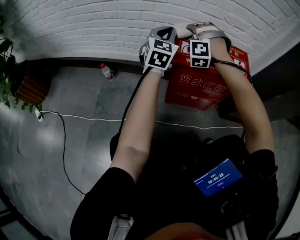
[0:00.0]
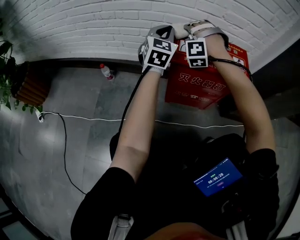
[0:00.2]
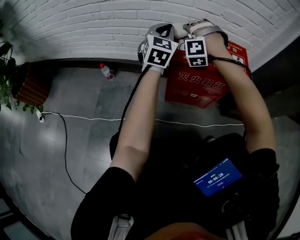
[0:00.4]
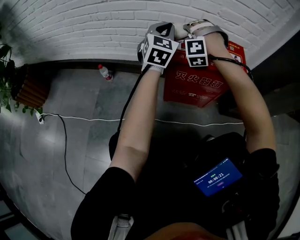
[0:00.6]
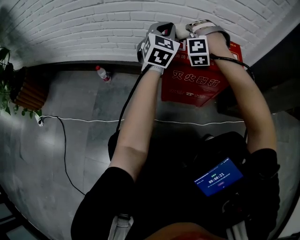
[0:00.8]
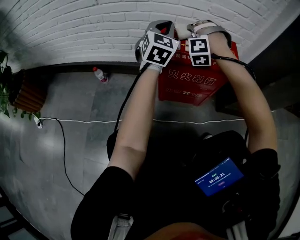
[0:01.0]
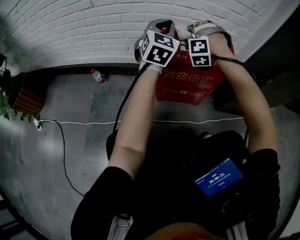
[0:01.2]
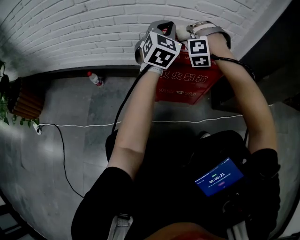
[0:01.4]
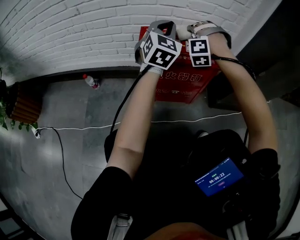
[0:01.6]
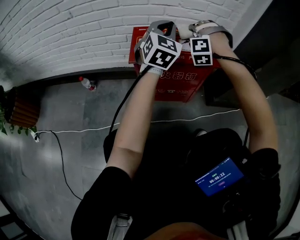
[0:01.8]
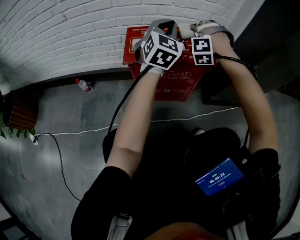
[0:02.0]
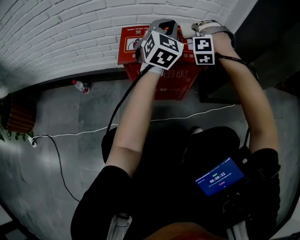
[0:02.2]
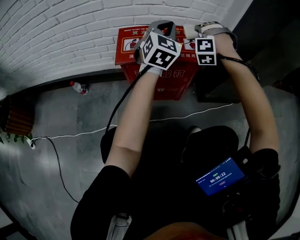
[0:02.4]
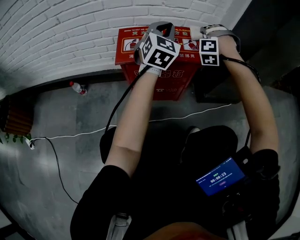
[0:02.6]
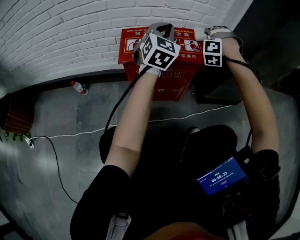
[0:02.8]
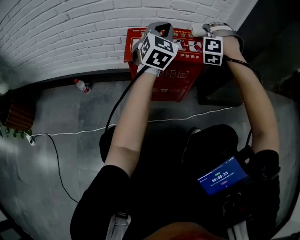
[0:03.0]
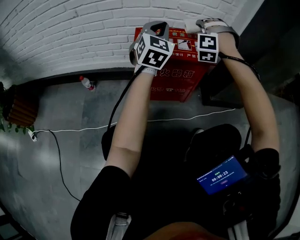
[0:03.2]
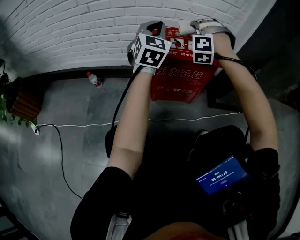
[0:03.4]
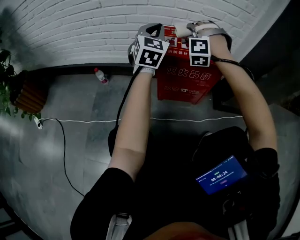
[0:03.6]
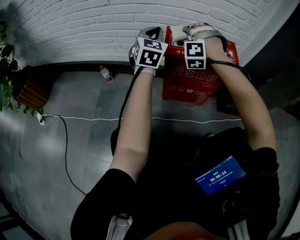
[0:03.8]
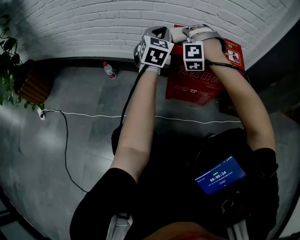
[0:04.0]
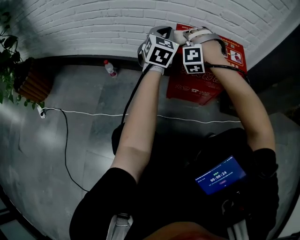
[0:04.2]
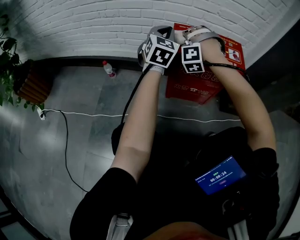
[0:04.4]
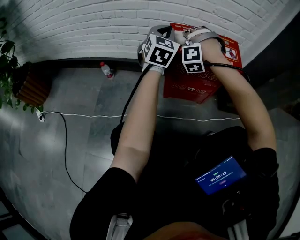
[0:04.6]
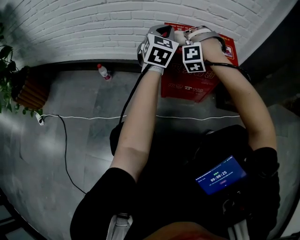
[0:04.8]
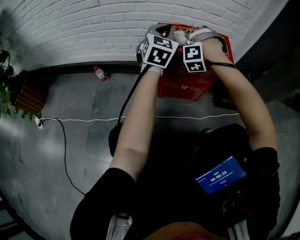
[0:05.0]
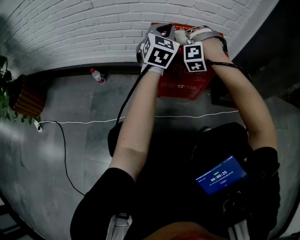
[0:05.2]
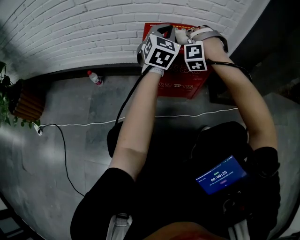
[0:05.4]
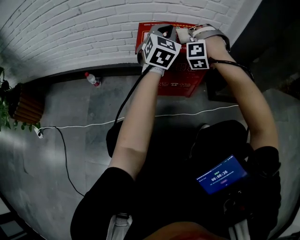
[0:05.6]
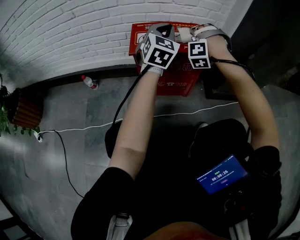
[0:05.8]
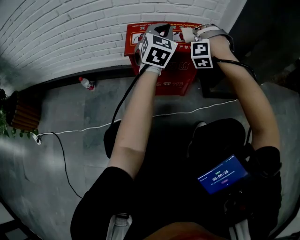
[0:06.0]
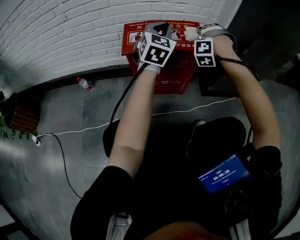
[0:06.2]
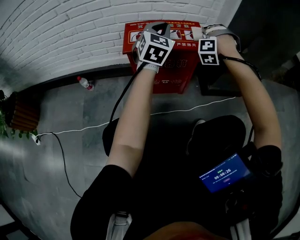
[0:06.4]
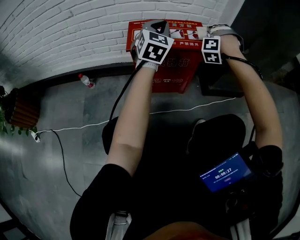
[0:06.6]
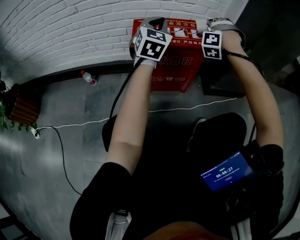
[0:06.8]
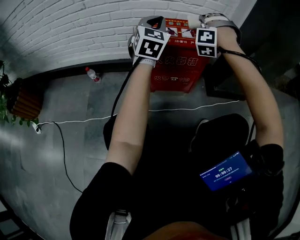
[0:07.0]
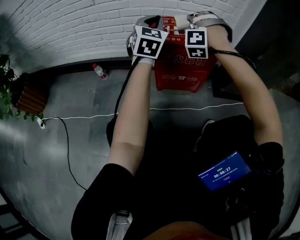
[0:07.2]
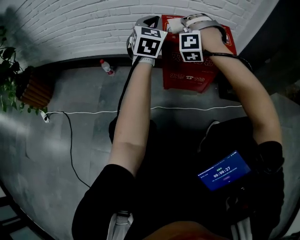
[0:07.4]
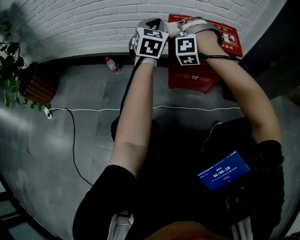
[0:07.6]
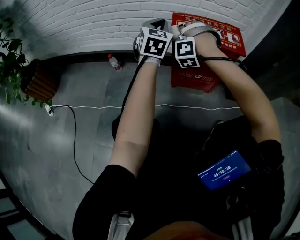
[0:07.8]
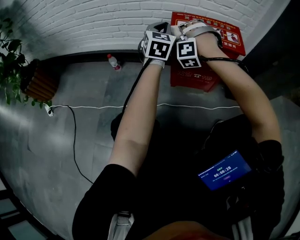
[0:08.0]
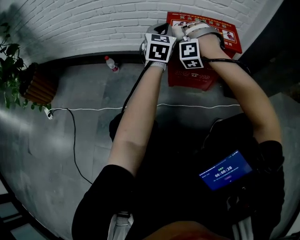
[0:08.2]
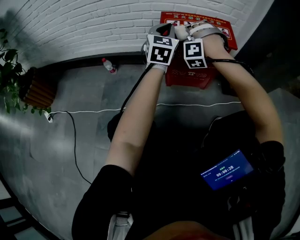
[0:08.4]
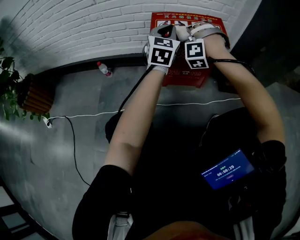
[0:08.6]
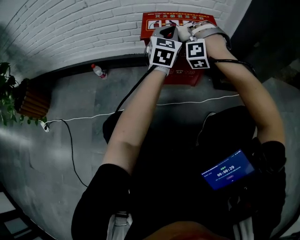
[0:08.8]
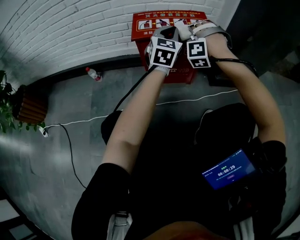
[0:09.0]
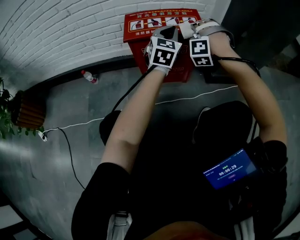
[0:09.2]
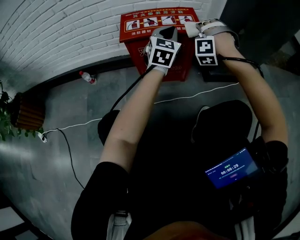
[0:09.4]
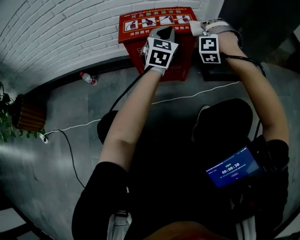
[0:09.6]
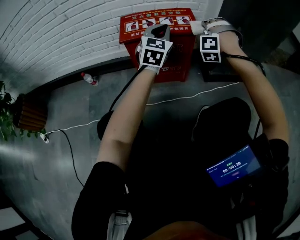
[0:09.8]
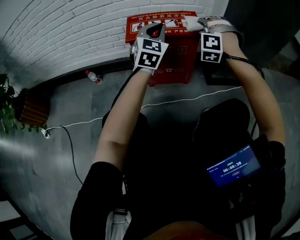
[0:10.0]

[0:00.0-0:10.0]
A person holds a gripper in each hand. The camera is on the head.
0:00.0 to 0:01.4: The left gripper ends up approximately 15 cm from where it was.
0:01.4 to 0:02.8: The left gripper ends up about 10 cm from where it was.
0:02.8 to 0:04.2: The left gripper ends up approximately 25 cm from where it was.
0:04.2 to 0:05.8: The left gripper changes place by roughly 20 cm.
0:05.8 to 0:07.2: The left gripper moves approximately 15 cm.
0:07.2 to 0:08.6: The left gripper ends up some 5 cm from where it was.

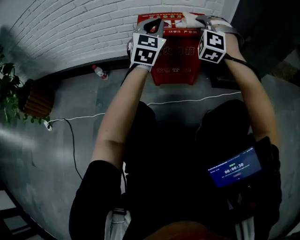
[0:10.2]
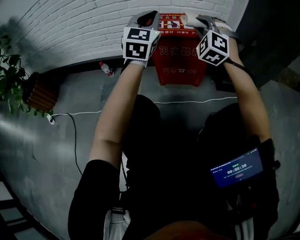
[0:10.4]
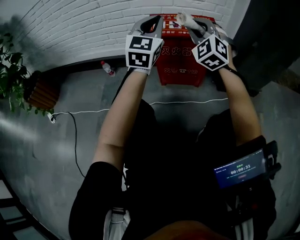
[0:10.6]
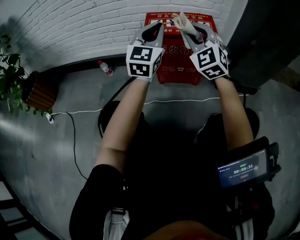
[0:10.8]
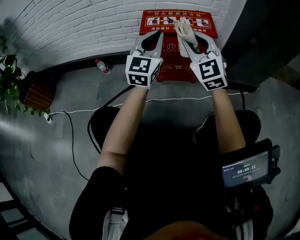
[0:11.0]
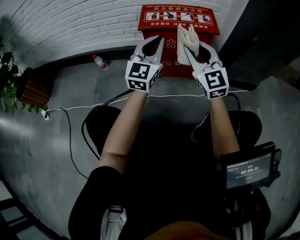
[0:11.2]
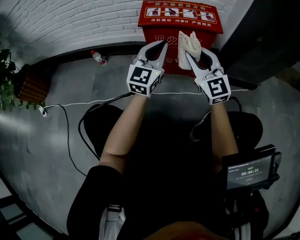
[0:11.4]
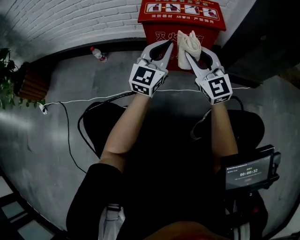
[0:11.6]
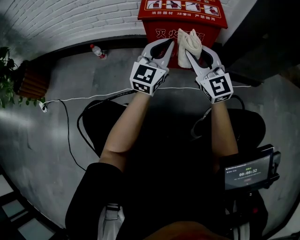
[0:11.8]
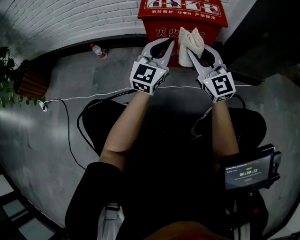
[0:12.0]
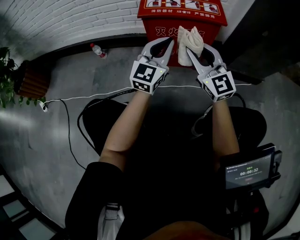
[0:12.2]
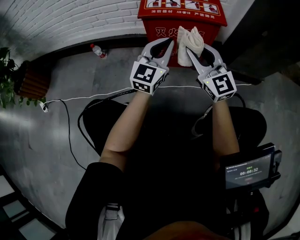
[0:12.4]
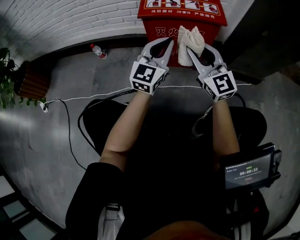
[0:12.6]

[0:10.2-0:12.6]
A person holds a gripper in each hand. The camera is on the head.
0:10.2 to 0:11.4: The left gripper shifts approximately 10 cm downward, and changes its angle by approximately 20 degrees.

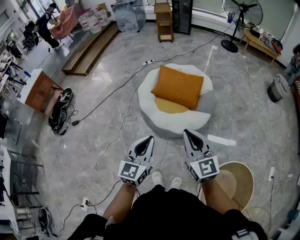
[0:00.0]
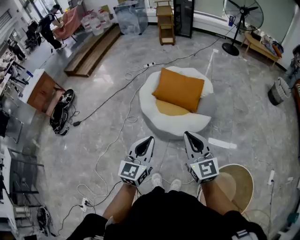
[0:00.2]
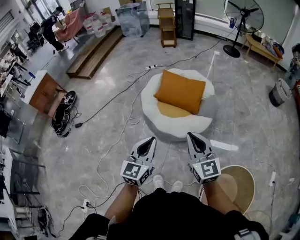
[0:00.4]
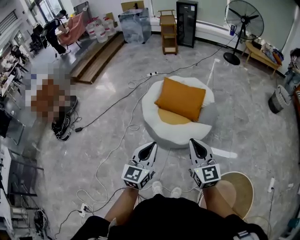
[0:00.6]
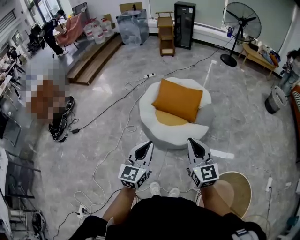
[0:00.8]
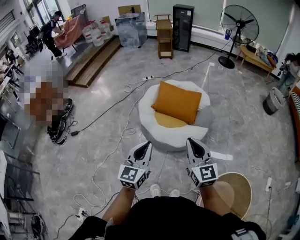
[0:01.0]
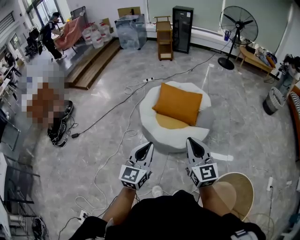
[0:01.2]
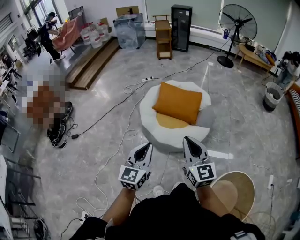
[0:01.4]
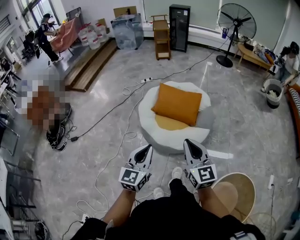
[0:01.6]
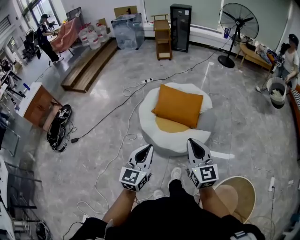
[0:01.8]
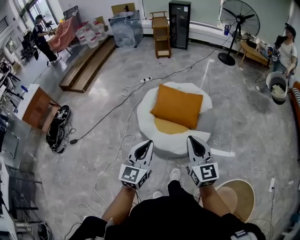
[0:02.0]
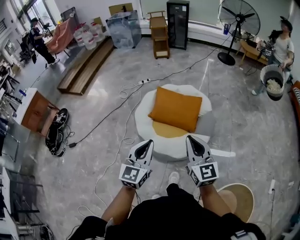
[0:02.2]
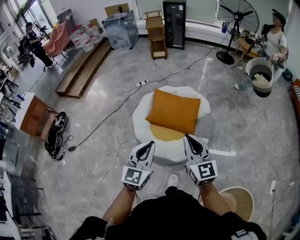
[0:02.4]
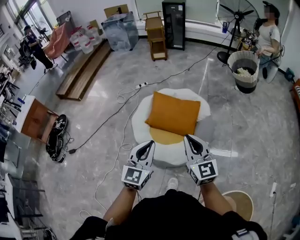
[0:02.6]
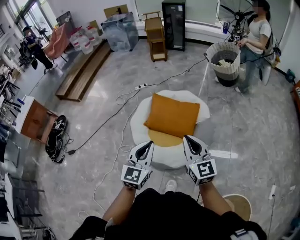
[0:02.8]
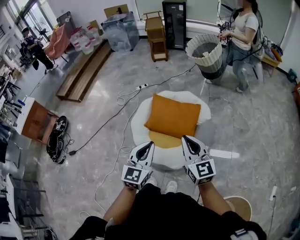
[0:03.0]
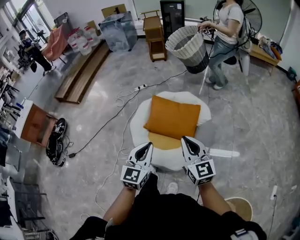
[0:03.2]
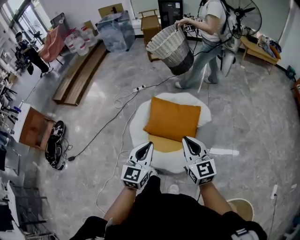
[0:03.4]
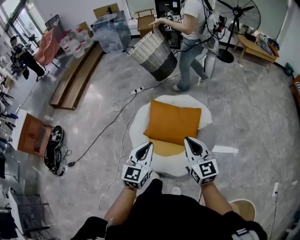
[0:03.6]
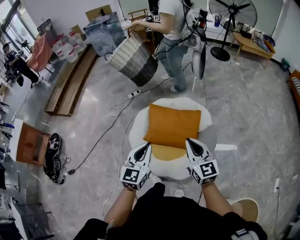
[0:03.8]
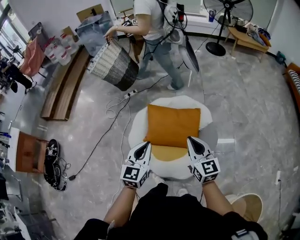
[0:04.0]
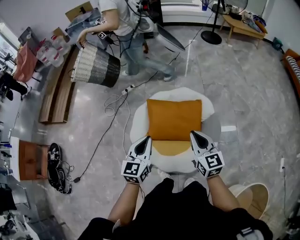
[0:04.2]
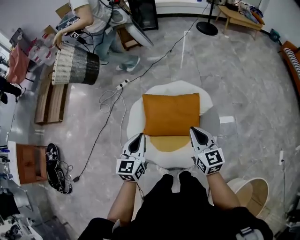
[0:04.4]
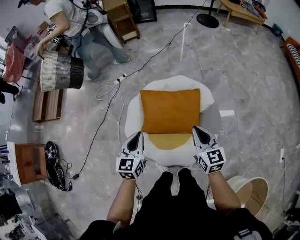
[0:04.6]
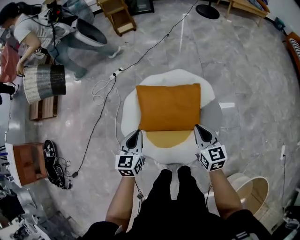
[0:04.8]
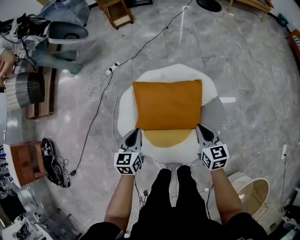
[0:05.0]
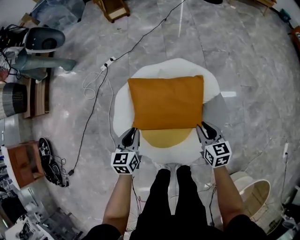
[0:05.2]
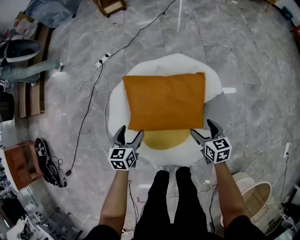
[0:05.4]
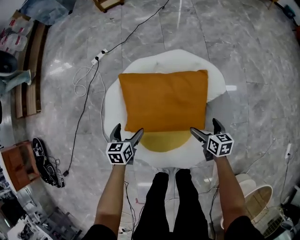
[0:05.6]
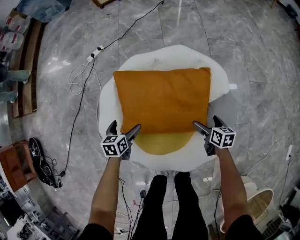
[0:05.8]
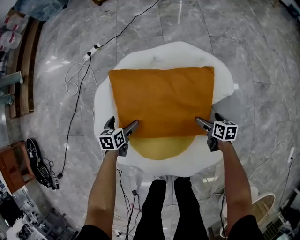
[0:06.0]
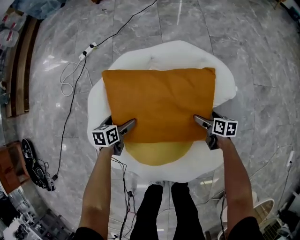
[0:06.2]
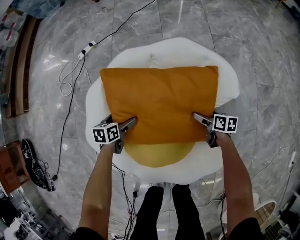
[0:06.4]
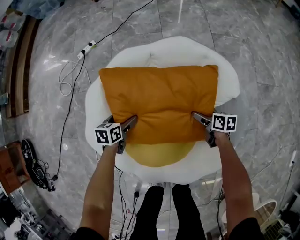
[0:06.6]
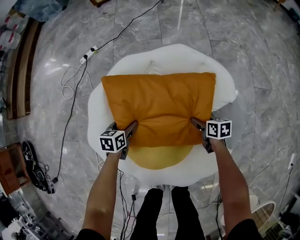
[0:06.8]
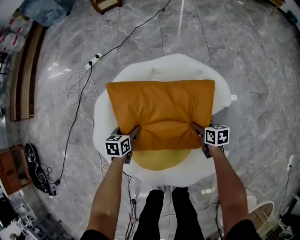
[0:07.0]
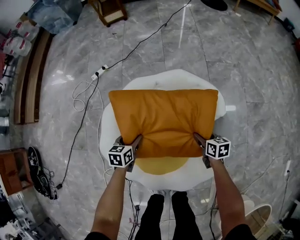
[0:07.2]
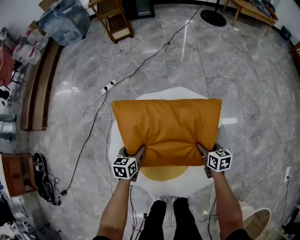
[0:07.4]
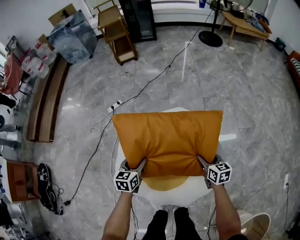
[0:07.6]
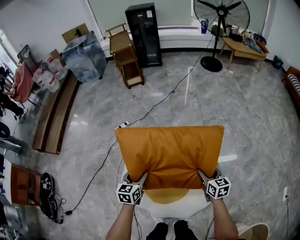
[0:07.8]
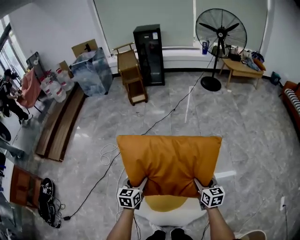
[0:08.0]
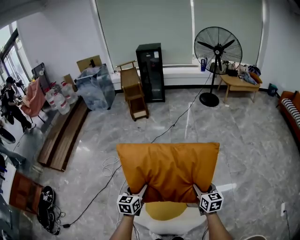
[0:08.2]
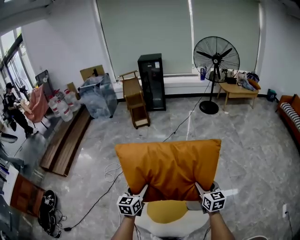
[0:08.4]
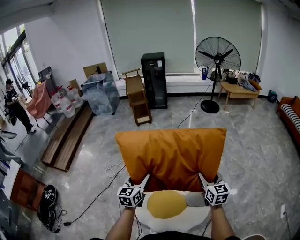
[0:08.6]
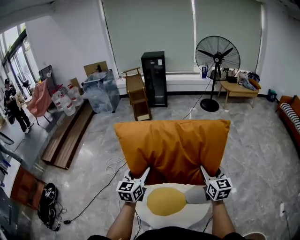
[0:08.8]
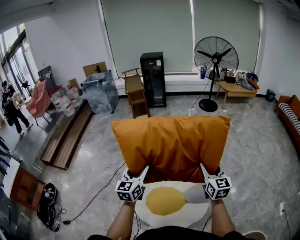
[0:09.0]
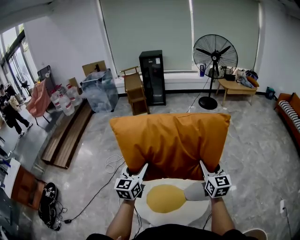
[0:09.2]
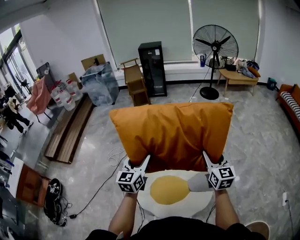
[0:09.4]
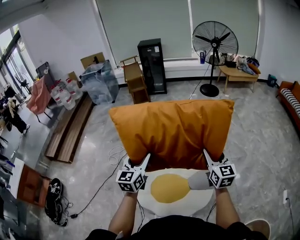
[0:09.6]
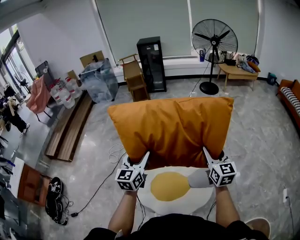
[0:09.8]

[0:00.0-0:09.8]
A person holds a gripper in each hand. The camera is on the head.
0:00.0 to 0:01.4: The left gripper travels to the left by some 5 cm.
0:01.4 to 0:02.8: Both grippers travel together forward and to the right, roughly 30 cm.
0:02.8 to 0:04.2: The right gripper is displaced forward and downward by roughly 25 cm, while the left gripper shifts some 25 cm forward.
0:04.2 to 0:05.6: The two grippers go some 40 cm downward. The left gripper tilts its fingers about 30 degrees downward, and opens up. The right gripper tilts its fingers some 30 degrees downward, and opens.
0:05.6 to 0:07.0: Both grippers travel together downward and forward, roughly 15 cm. The left gripper closes; the right gripper closes.
0:07.0 to 0:08.4: The two grippers go about 60 cm upward. The left gripper tips its fingers upward by approximately 30 degrees; the right gripper tips its fingers upward by roughly 30 degrees.
0:08.4 to 0:09.8: Both grippers travel together upward, about 15 cm.

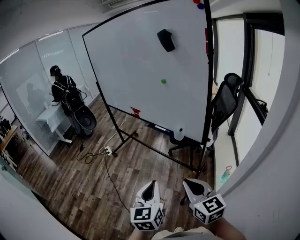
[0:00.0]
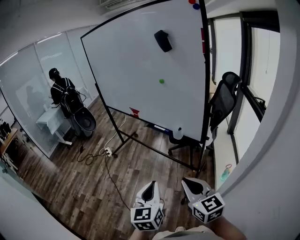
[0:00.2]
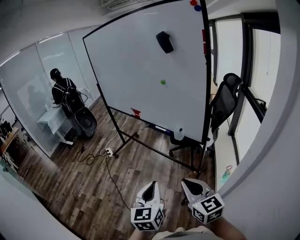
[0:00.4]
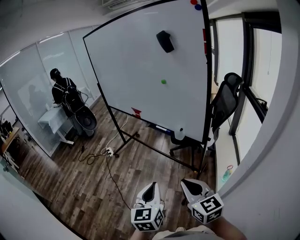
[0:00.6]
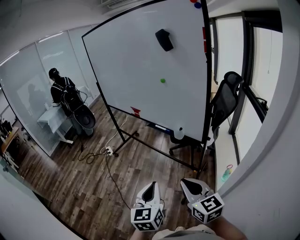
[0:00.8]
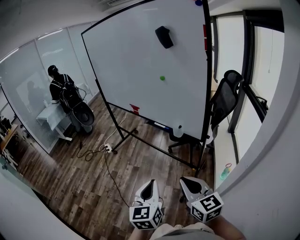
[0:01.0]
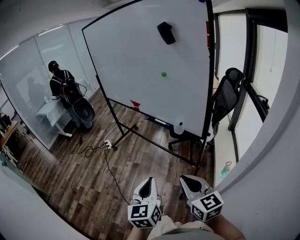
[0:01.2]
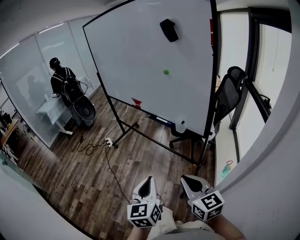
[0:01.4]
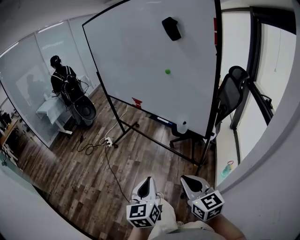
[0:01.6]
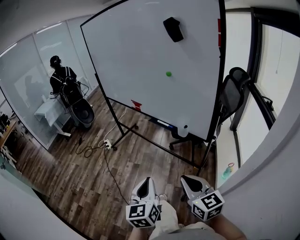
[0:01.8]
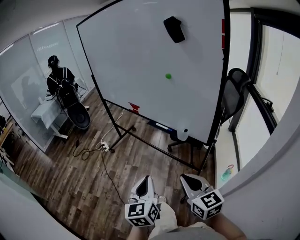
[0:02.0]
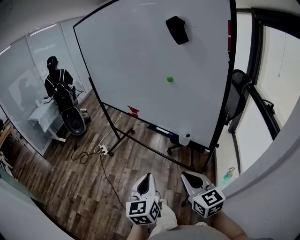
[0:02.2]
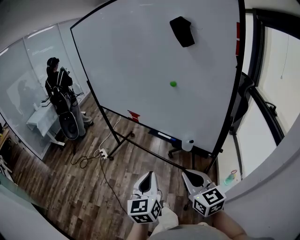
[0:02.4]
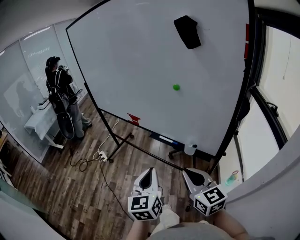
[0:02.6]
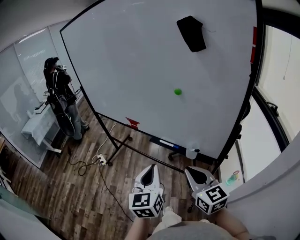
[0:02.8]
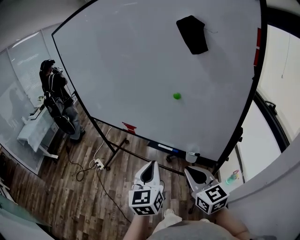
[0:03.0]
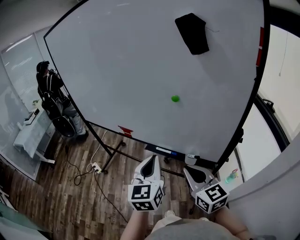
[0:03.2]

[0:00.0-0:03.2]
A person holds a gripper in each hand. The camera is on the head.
0:00.0 to 0:01.6: The grippers make only small movements.
0:01.6 to 0:03.2: Both grippers move forward, approximately 30 cm. The left gripper turns by approximately 20 degrees.
